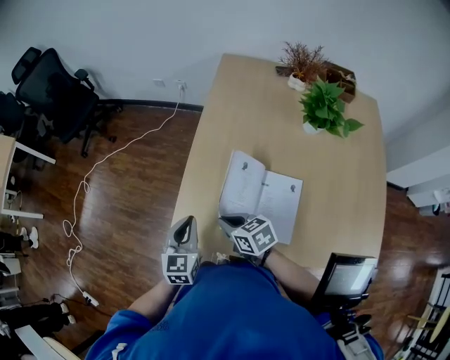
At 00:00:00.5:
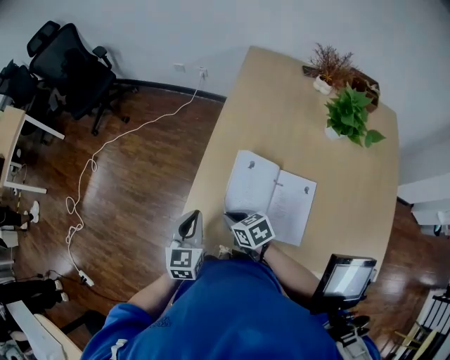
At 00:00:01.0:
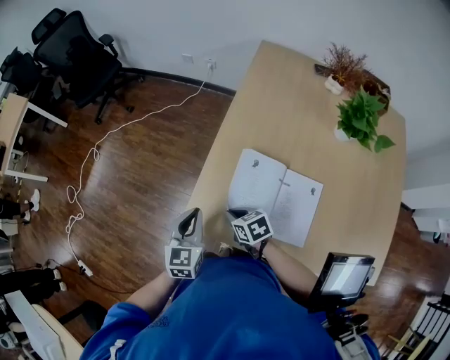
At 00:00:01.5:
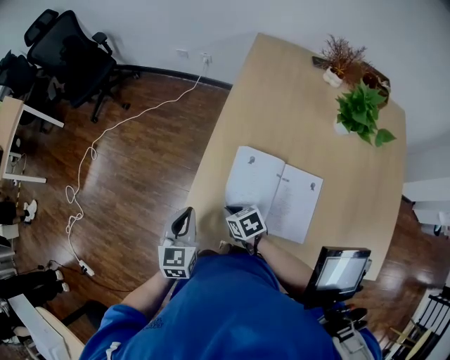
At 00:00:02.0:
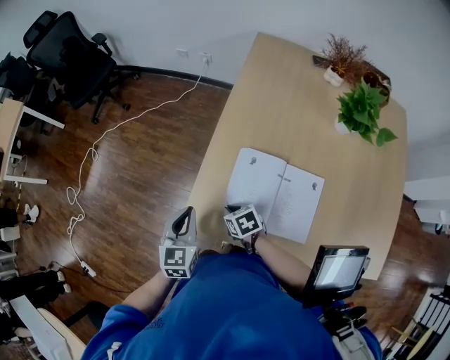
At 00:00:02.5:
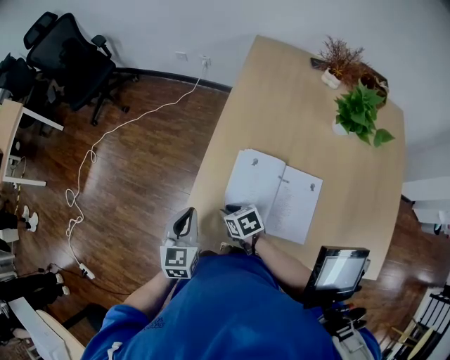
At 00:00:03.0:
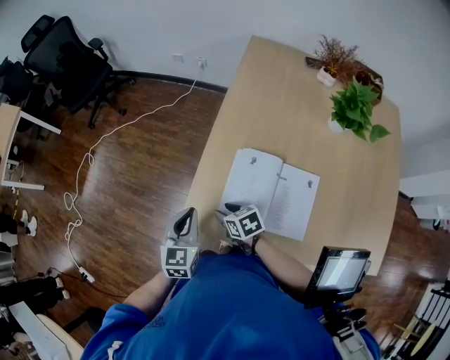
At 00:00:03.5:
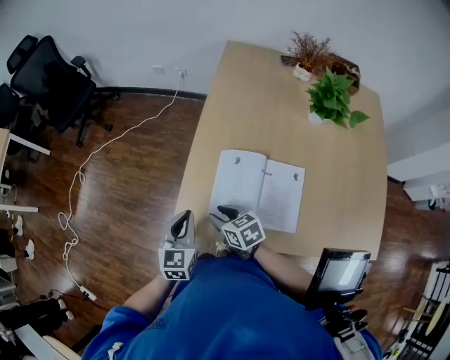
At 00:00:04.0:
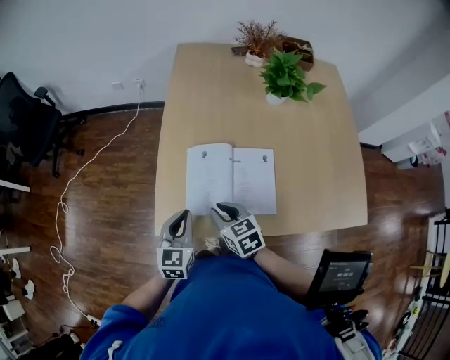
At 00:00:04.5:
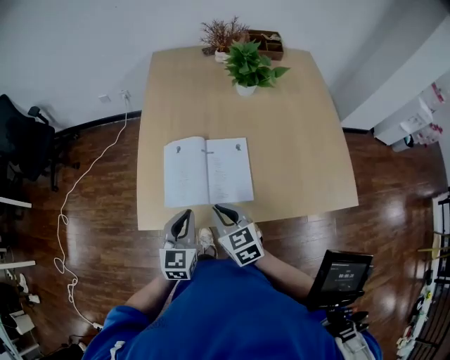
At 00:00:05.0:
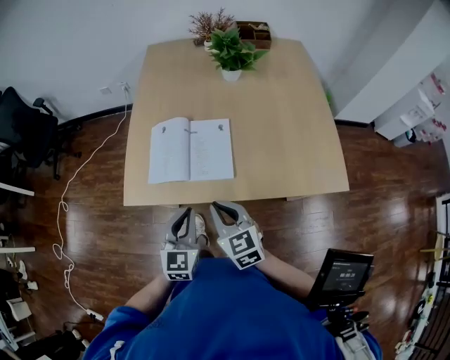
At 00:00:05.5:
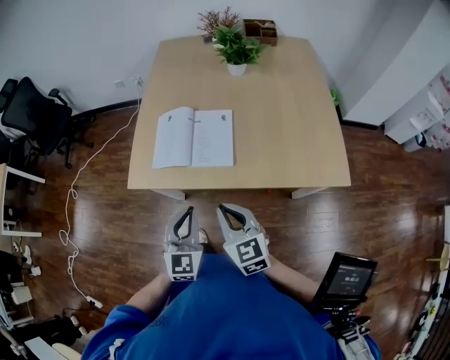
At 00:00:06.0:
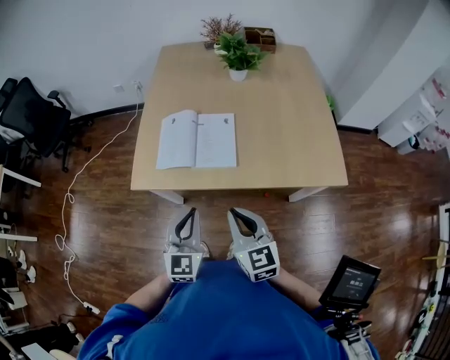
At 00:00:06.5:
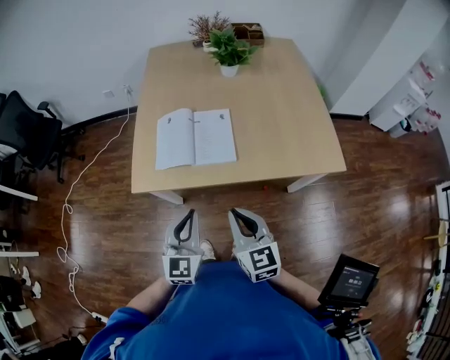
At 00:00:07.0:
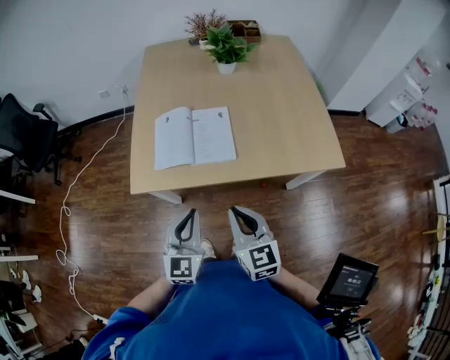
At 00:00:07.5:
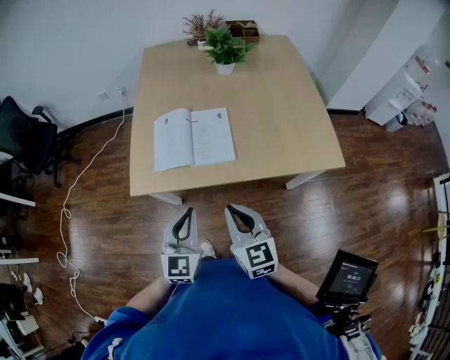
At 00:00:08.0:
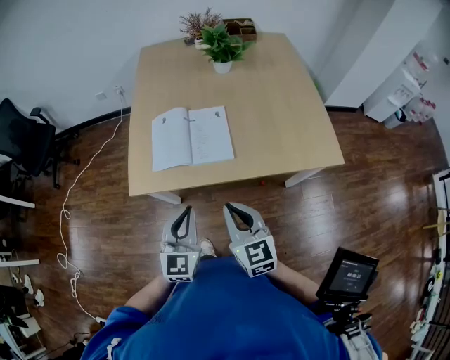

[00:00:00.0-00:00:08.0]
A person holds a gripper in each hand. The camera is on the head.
00:00:00.0 to 00:00:02.0: The right gripper heads downward, covering some 10 cm. Meanwhile the left gripper heads to the left, covering about 5 cm.
00:00:02.0 to 00:00:04.0: The left gripper moves about 10 cm, and swivels some 20 degrees. The right gripper shifts roughly 10 cm upward, and changes its angle by roughly 30 degrees.
00:00:04.0 to 00:00:06.0: The left gripper travels backward and to the right by some 30 cm, while the right gripper heads backward, to the right and upward, covering roughly 35 cm, and swivels approximately 30 degrees.
00:00:06.0 to 00:00:08.0: There are only small adjustments of the grippers.

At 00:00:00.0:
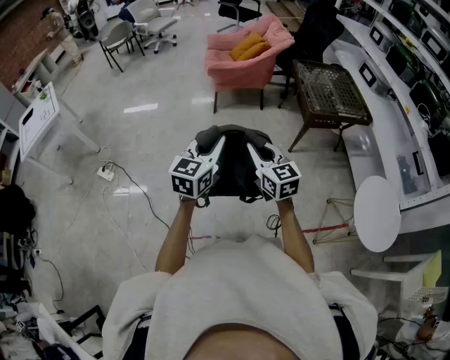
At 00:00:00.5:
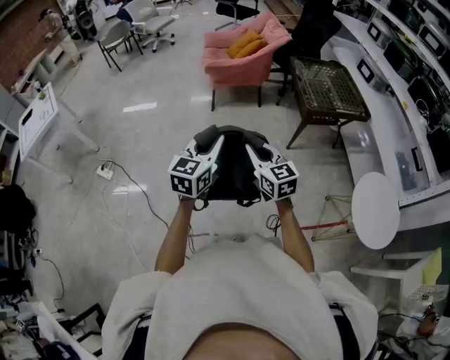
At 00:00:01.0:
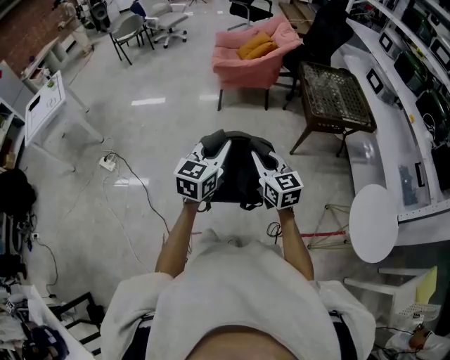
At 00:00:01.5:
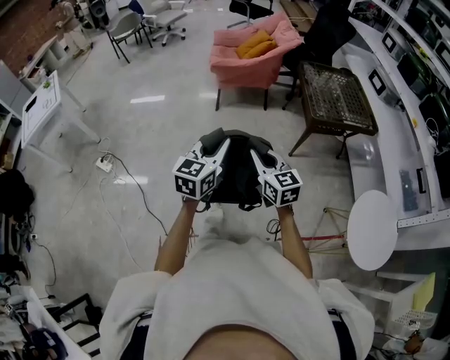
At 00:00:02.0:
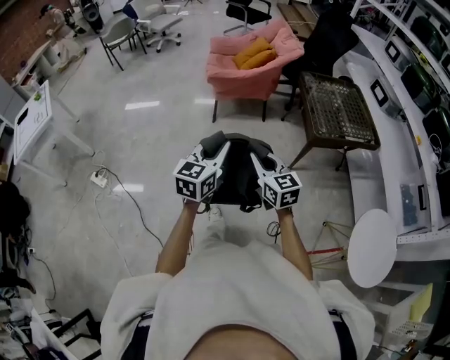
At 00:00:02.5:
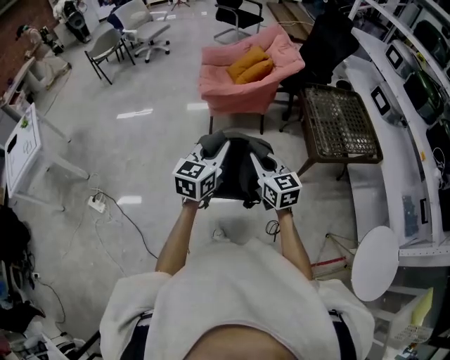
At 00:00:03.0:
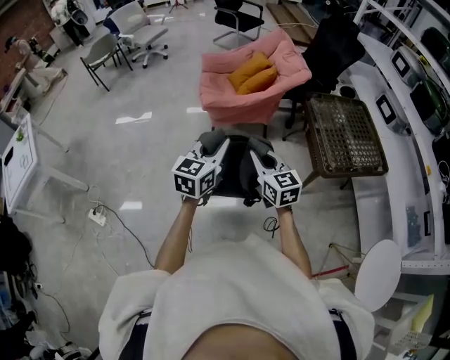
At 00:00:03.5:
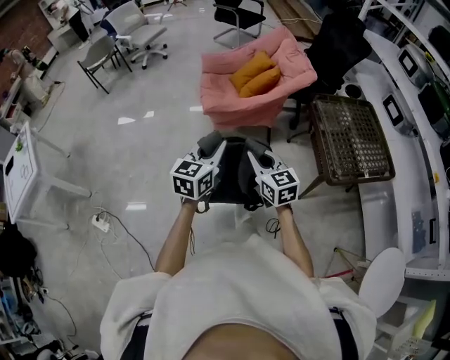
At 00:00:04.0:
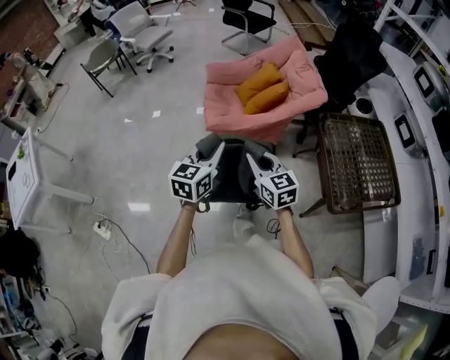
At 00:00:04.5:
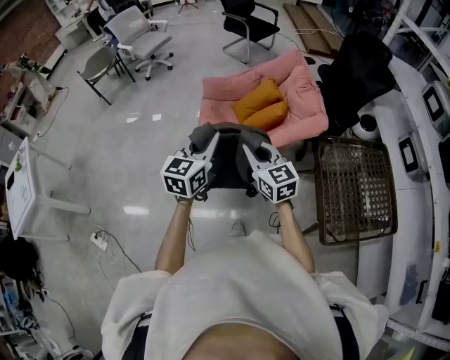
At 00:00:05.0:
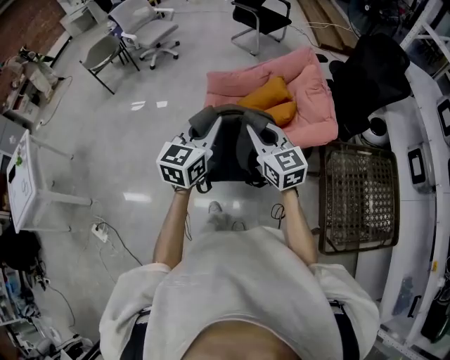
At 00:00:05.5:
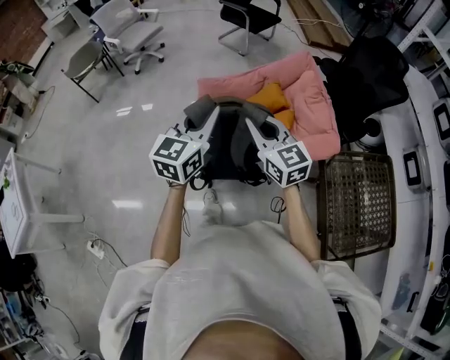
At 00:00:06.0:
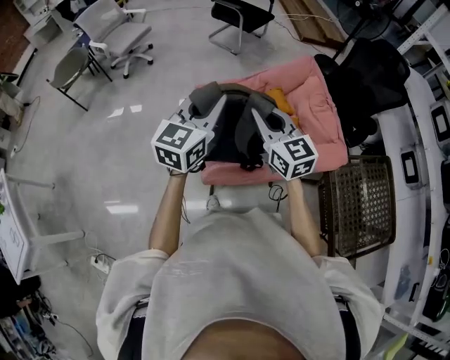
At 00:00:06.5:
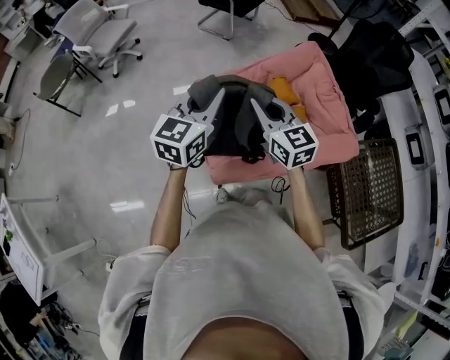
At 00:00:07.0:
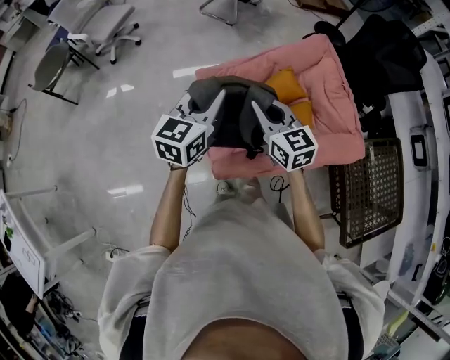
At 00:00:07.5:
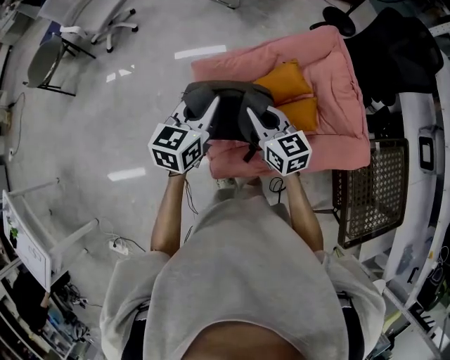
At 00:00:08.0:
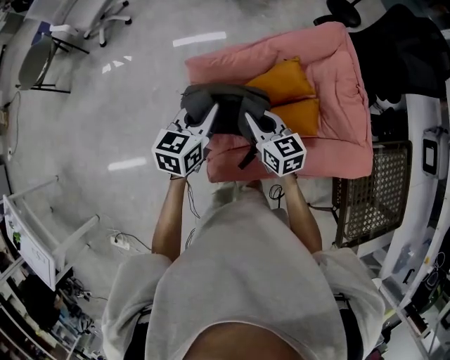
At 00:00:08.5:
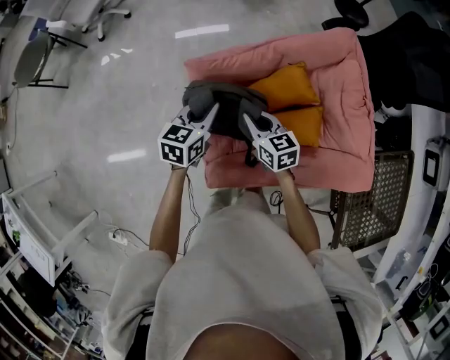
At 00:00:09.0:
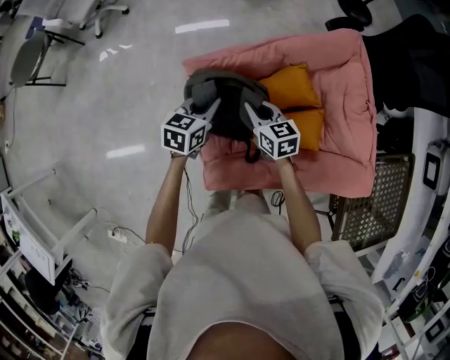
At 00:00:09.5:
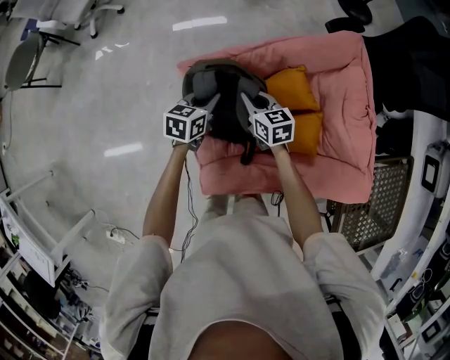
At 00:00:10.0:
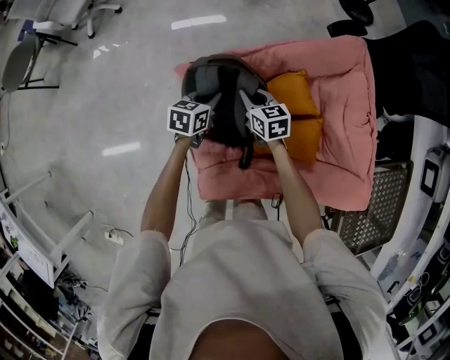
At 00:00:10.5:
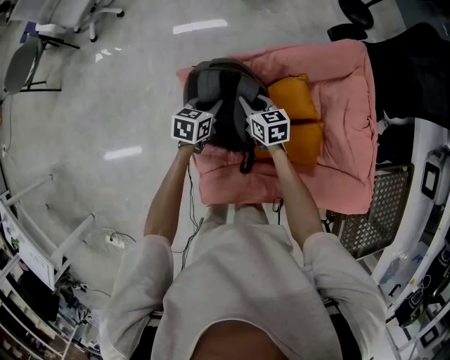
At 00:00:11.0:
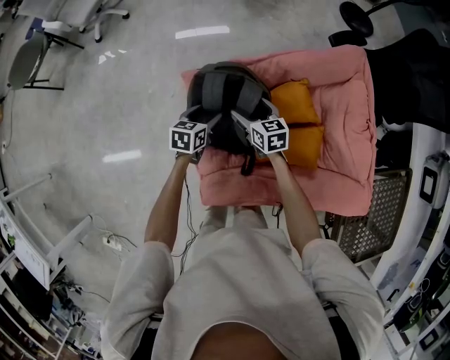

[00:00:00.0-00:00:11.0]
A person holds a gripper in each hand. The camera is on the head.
00:00:00.0 to 00:00:02.0: Both grippers travel together forward, approximately 15 cm.
00:00:02.0 to 00:00:03.5: Both grippers move forward, approximately 40 cm.
00:00:03.5 to 00:00:05.5: The two grippers travel together, forward, about 50 cm.
00:00:05.5 to 00:00:07.5: The grippers both shift forward and downward by approximately 30 cm.
00:00:07.5 to 00:00:09.0: Both grippers move downward and forward, roughly 25 cm.
00:00:09.0 to 00:00:11.0: The left gripper travels downward by roughly 10 cm, and opens. Meanwhile the right gripper shifts approximately 10 cm downward and forward, and opens.

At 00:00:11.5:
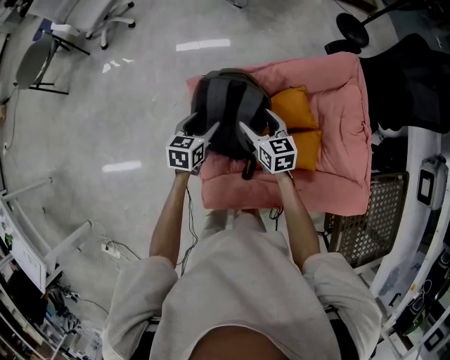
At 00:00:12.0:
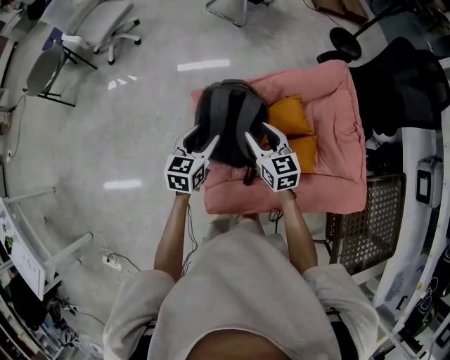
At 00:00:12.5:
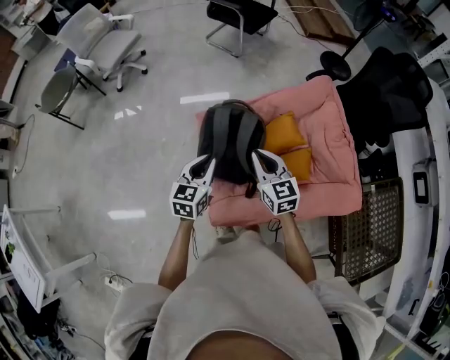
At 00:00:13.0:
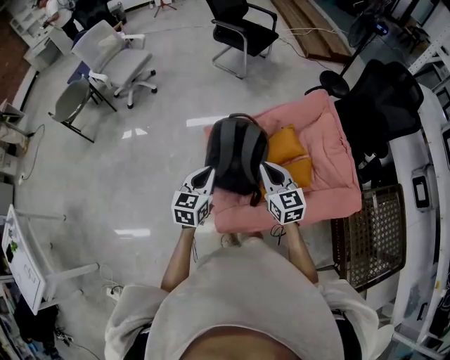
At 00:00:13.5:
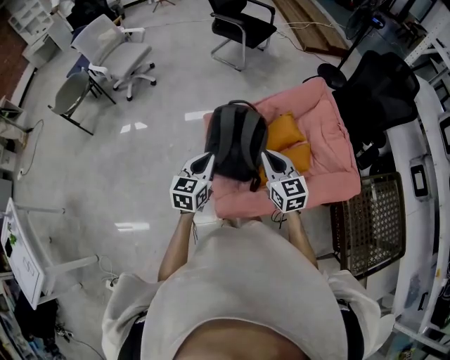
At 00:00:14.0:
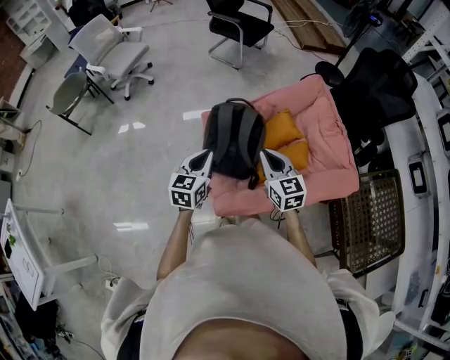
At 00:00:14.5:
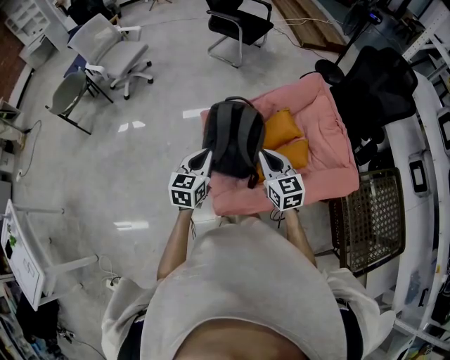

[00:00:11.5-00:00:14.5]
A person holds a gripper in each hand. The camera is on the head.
00:00:11.5 to 00:00:13.0: The two grippers go roughly 25 cm upward and backward. The left gripper closes. The right gripper closes its fingers.
00:00:13.0 to 00:00:14.5: The grippers stay close to where they were, moving slightly.

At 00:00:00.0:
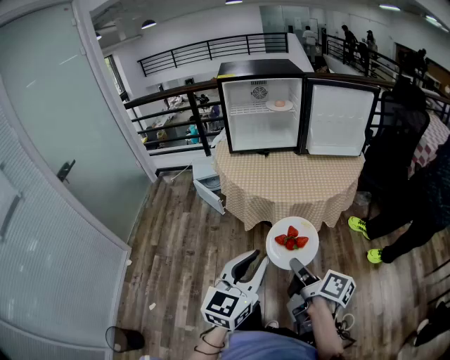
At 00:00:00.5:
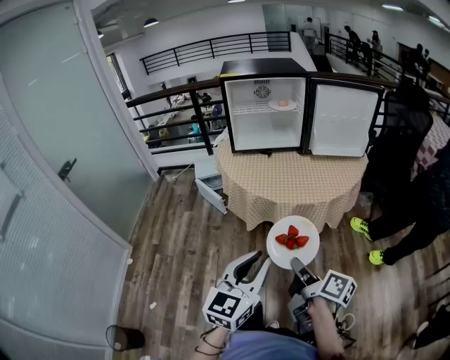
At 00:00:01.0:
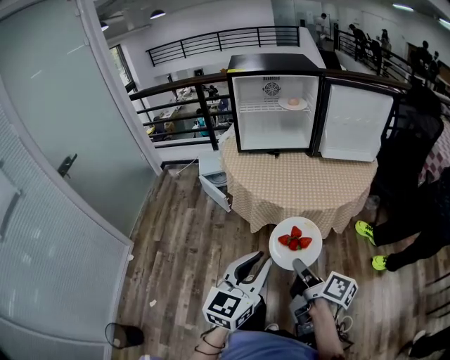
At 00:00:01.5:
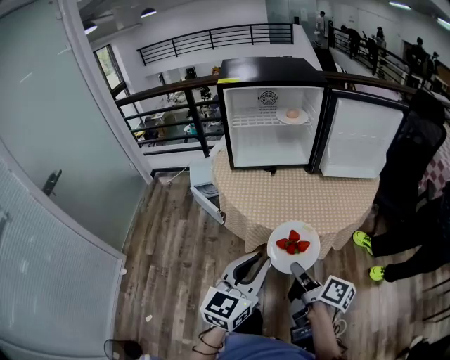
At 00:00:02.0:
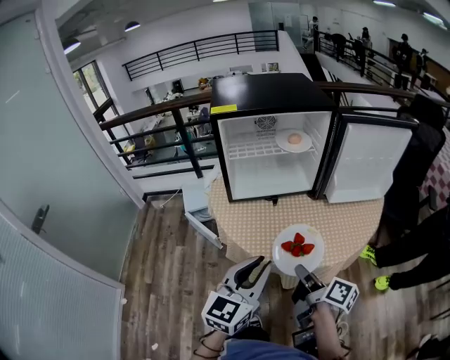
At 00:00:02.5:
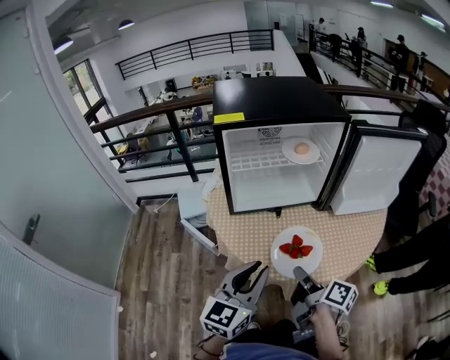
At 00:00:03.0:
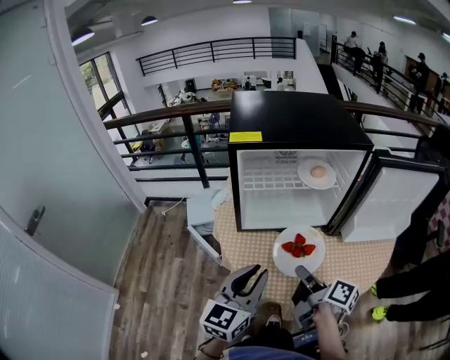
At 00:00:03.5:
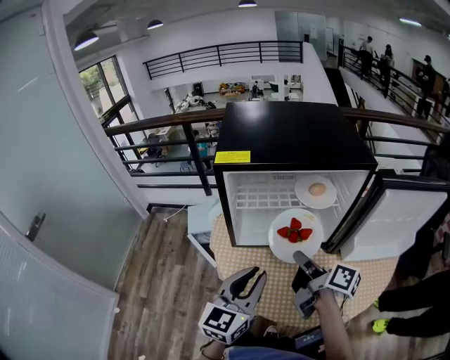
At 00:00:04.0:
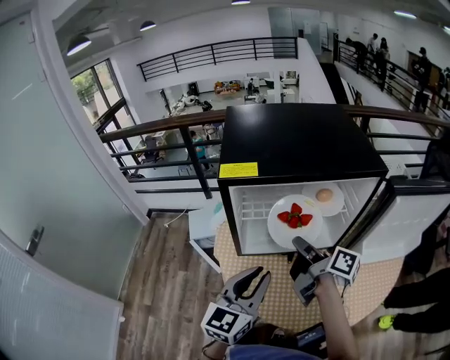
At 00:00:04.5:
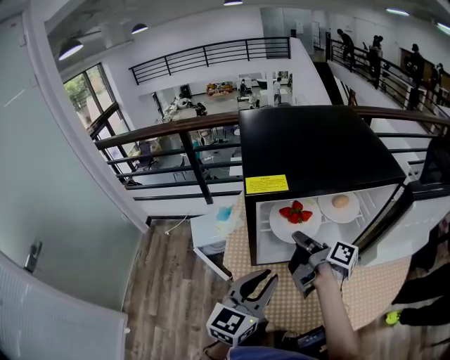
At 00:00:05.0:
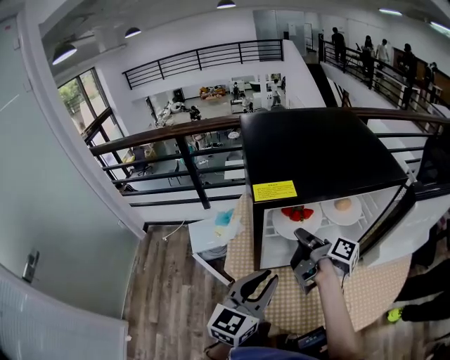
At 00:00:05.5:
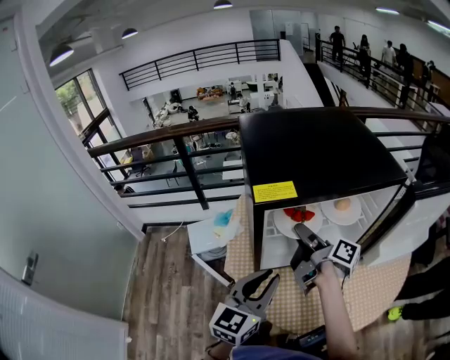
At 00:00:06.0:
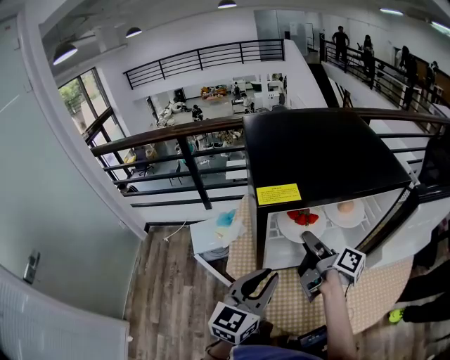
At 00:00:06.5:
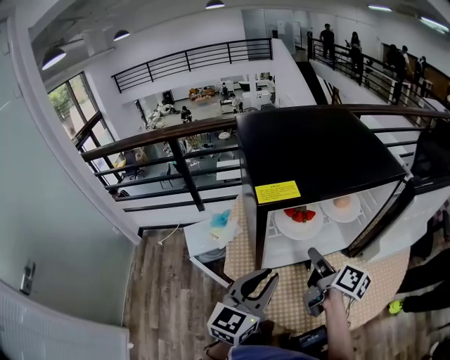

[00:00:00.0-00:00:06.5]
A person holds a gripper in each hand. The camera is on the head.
00:00:00.0 to 00:00:02.0: The two grippers go approximately 35 cm forward.
00:00:02.0 to 00:00:04.5: The two grippers go roughly 35 cm forward.
00:00:04.5 to 00:00:06.5: The right gripper moves about 5 cm, swivels approximately 30 degrees, and opens up.
